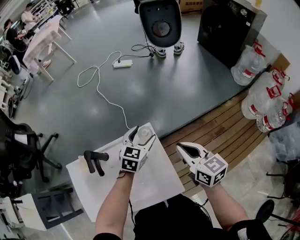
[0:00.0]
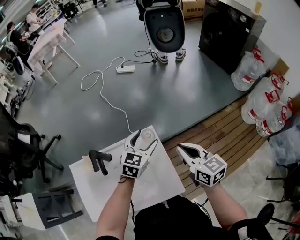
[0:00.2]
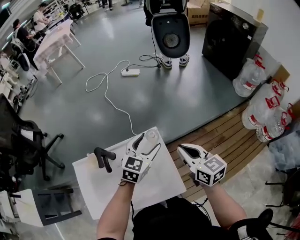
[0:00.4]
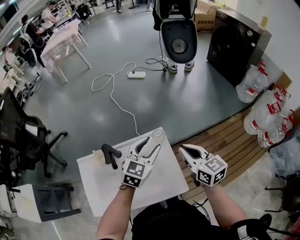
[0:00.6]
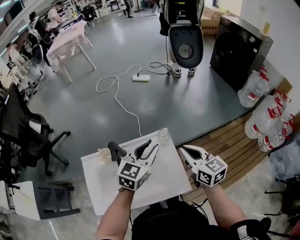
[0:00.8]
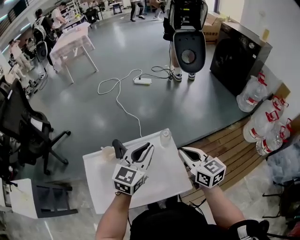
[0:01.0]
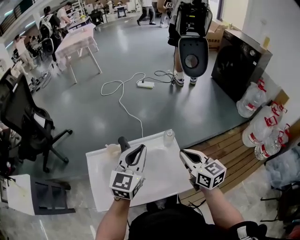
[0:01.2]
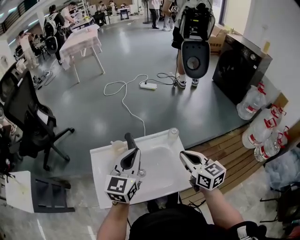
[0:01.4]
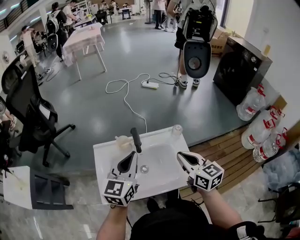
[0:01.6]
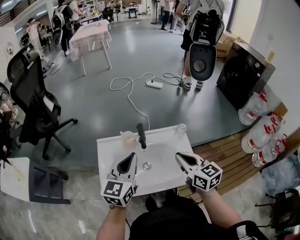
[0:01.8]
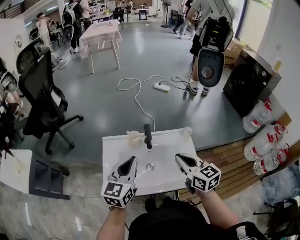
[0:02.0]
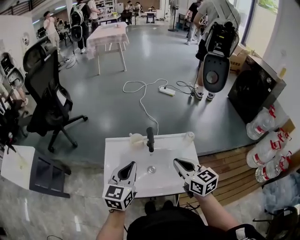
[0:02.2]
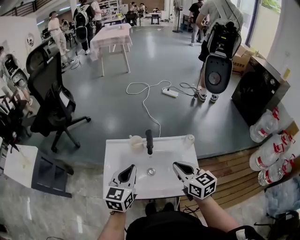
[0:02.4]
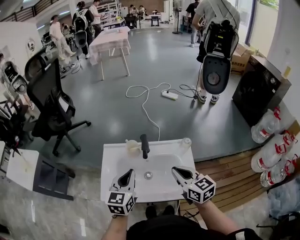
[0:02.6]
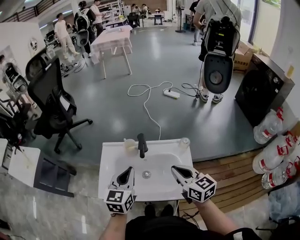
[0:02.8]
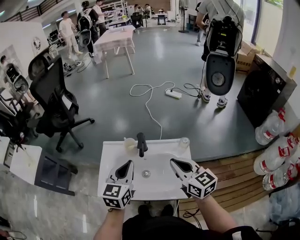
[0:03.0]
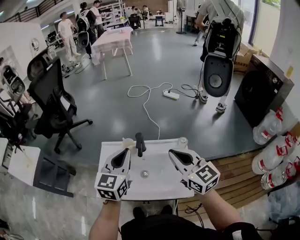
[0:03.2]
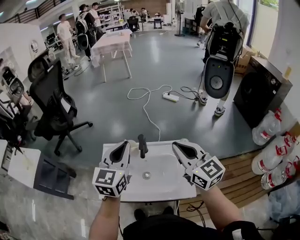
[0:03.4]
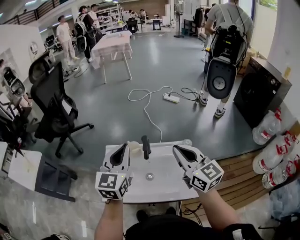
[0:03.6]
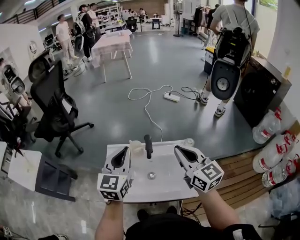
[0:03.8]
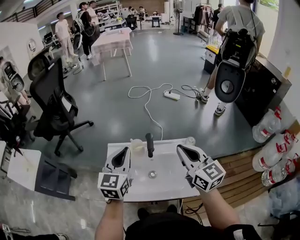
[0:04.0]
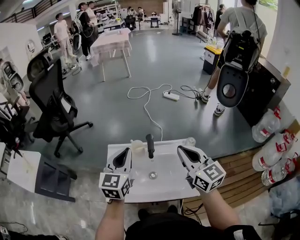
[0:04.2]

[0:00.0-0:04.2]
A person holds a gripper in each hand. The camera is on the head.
0:00.0 to 0:01.4: The left gripper travels upward, to the left and backward by about 35 cm, turns by about 30 degrees, and closes. Meanwhile the right gripper heads to the left, backward and upward, covering about 20 cm.
0:01.4 to 0:02.8: The right gripper moves to the left, roughly 5 cm. Meanwhile the left gripper is displaced to the left, backward and downward by about 10 cm, and swivels some 20 degrees.
0:02.8 to 0:04.2: The right gripper shifts some 10 cm upward, while the left gripper shifts some 10 cm upward, forward and to the left.

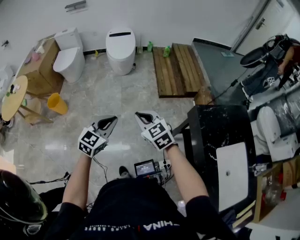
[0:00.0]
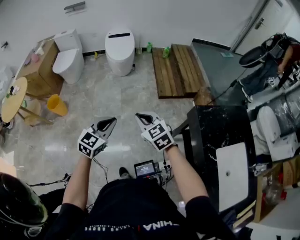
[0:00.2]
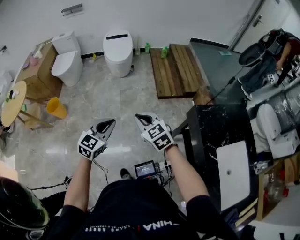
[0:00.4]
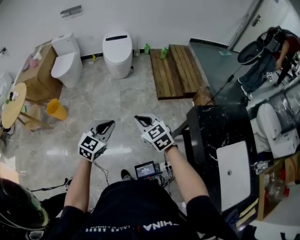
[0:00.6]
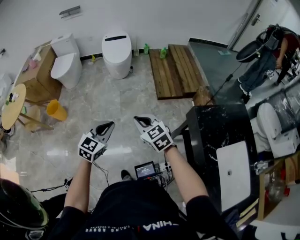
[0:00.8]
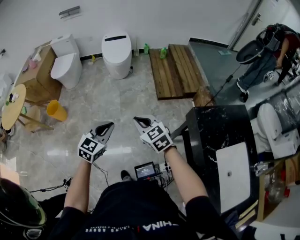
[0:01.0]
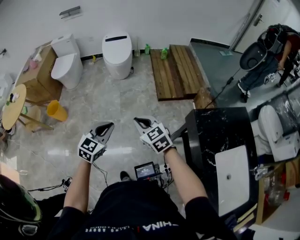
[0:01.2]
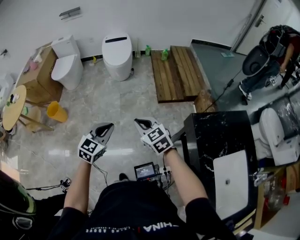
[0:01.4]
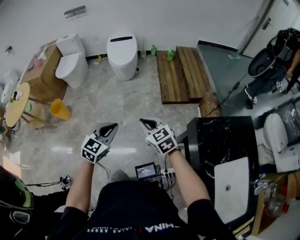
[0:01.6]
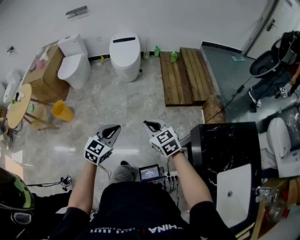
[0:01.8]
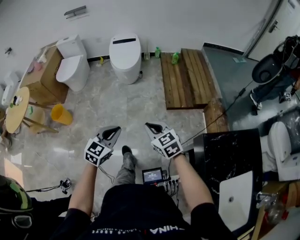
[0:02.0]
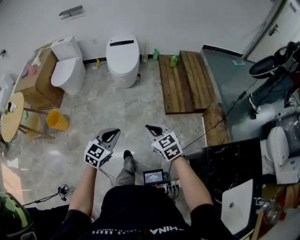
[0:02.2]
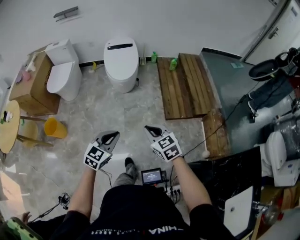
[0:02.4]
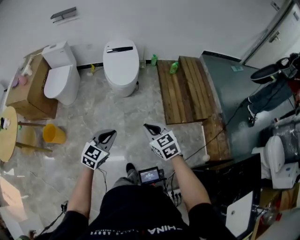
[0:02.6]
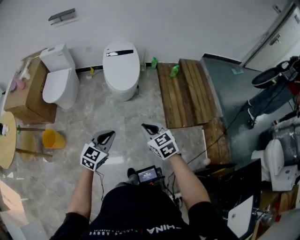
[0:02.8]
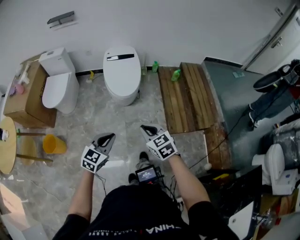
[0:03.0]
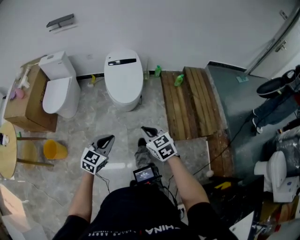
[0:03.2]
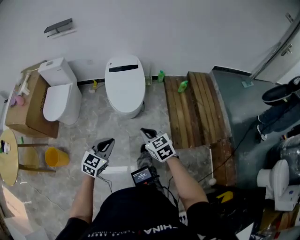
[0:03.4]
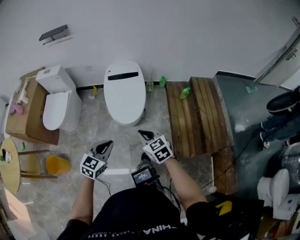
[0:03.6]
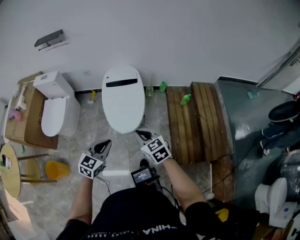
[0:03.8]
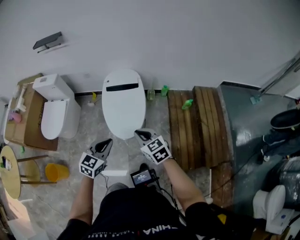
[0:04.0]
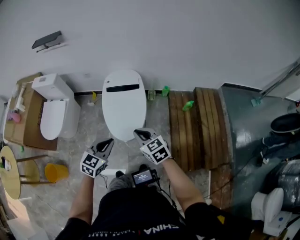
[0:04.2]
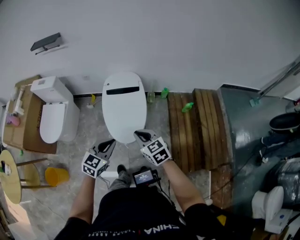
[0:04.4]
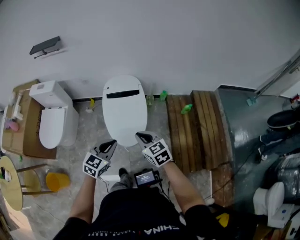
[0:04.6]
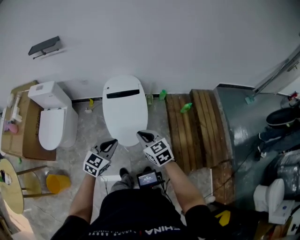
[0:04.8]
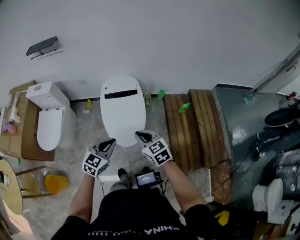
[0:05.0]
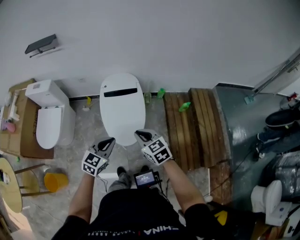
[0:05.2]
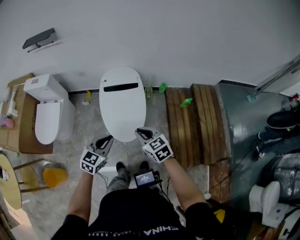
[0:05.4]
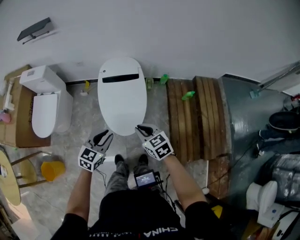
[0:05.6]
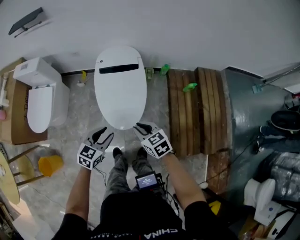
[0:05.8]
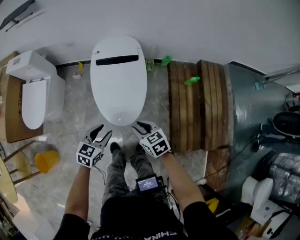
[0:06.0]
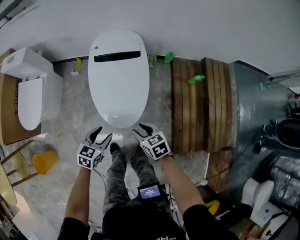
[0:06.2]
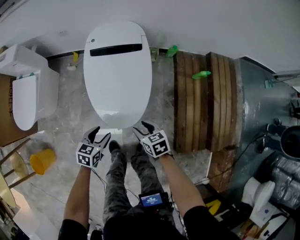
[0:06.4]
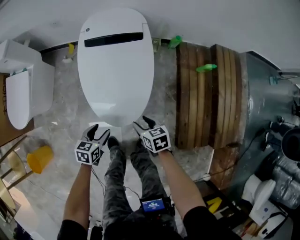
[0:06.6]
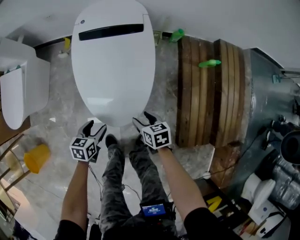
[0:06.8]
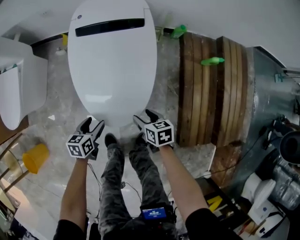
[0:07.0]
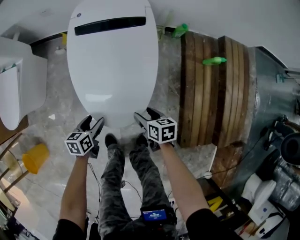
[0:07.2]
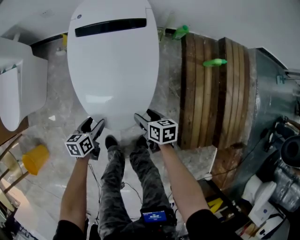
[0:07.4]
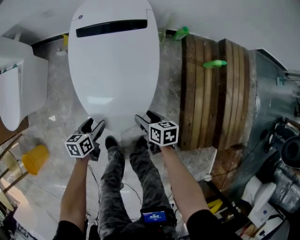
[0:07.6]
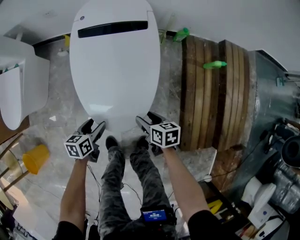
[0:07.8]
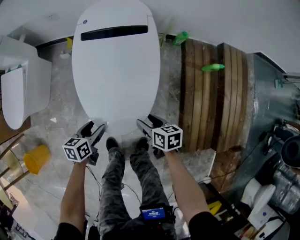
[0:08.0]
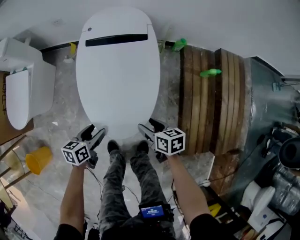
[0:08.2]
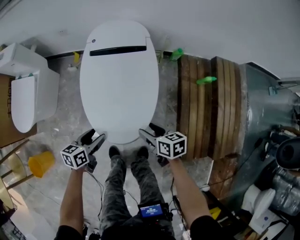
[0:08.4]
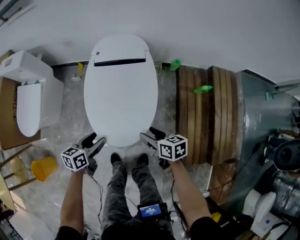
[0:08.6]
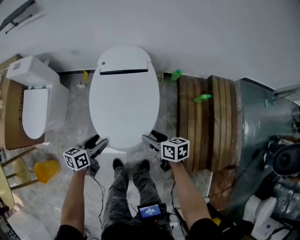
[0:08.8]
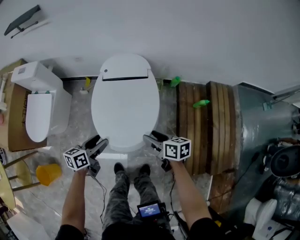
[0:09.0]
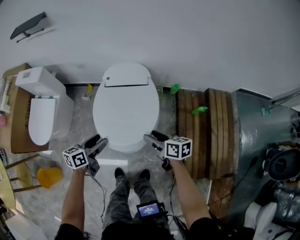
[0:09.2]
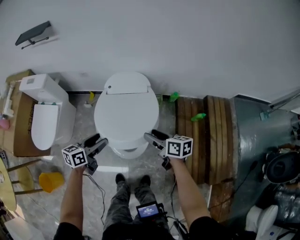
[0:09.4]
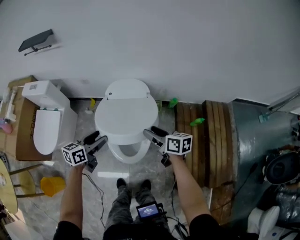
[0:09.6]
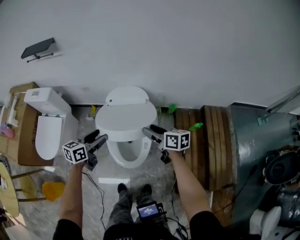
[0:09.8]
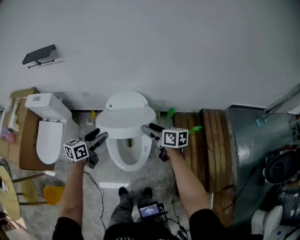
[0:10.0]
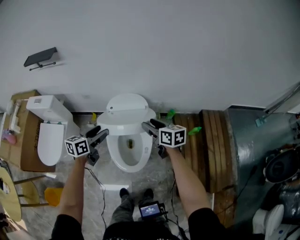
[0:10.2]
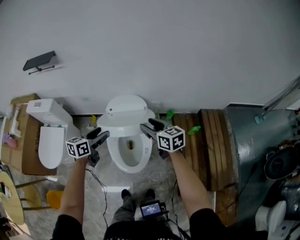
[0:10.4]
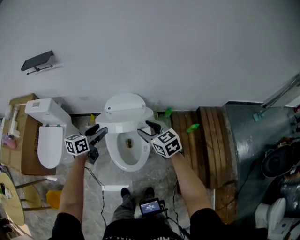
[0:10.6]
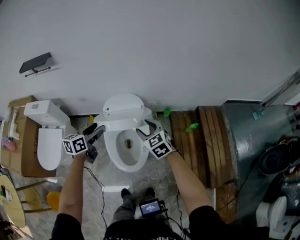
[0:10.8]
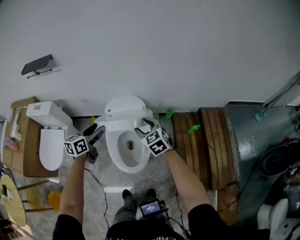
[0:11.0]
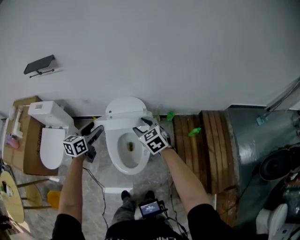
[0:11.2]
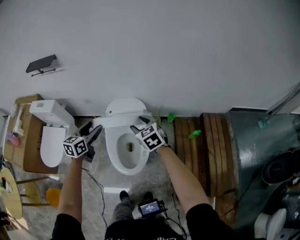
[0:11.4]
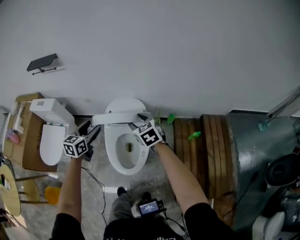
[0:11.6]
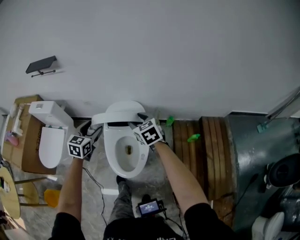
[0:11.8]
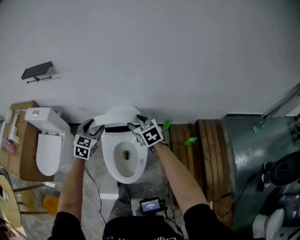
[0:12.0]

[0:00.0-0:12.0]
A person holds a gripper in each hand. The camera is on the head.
0:00.0 to 0:01.6: The right gripper is displaced to the right and forward by about 10 cm, while the left gripper goes approximately 5 cm forward.
0:01.6 to 0:03.0: The pair of grippers is taken forward, about 50 cm.
0:03.0 to 0:04.4: Both grippers are carried forward, some 40 cm.
0:04.4 to 0:06.0: Both grippers move downward, about 20 cm. The left gripper opens up.
0:06.0 to 0:07.6: Both grippers travel together downward, about 30 cm. The right gripper changes its angle by roughly 30 degrees, and opens its fingers; the left gripper swivels some 40 degrees, and opens up.
0:07.6 to 0:09.0: The two grippers go approximately 30 cm upward.
0:09.0 to 0:10.4: The two grippers go about 25 cm upward and forward. The right gripper changes its angle by roughly 30 degrees.
0:10.4 to 0:12.0: The two grippers go about 10 cm forward. The left gripper turns by roughly 50 degrees, while the right gripper swivels some 20 degrees.

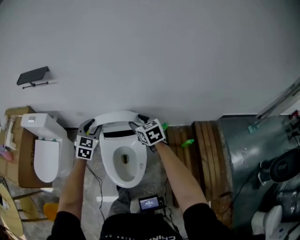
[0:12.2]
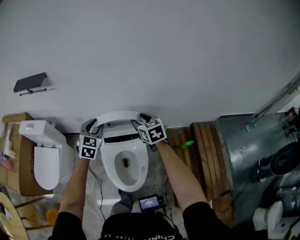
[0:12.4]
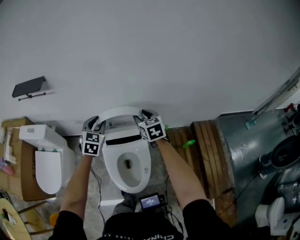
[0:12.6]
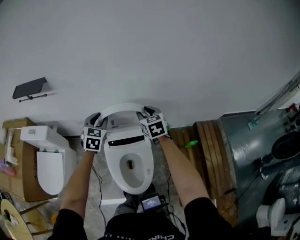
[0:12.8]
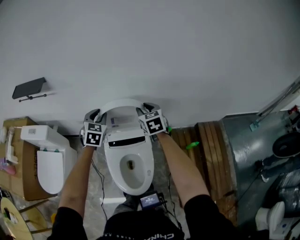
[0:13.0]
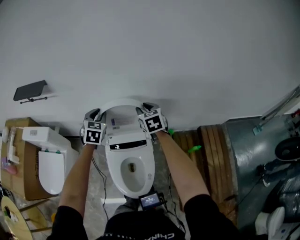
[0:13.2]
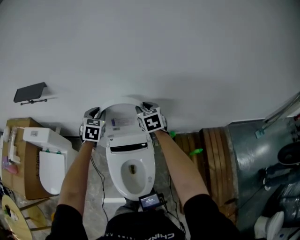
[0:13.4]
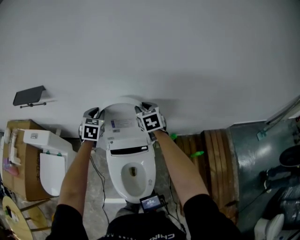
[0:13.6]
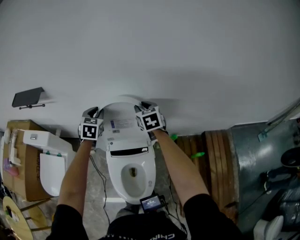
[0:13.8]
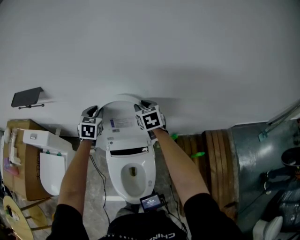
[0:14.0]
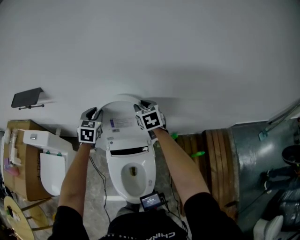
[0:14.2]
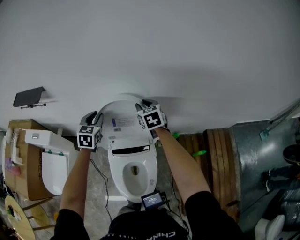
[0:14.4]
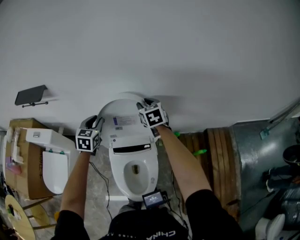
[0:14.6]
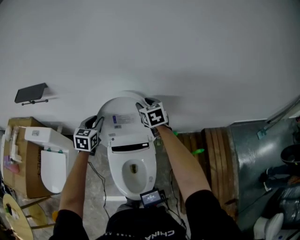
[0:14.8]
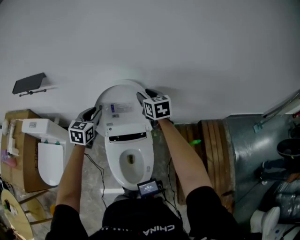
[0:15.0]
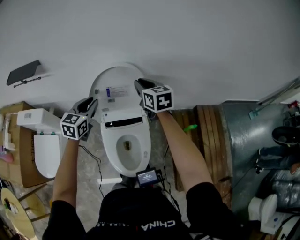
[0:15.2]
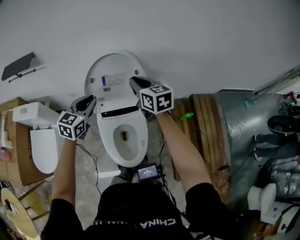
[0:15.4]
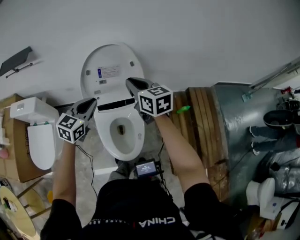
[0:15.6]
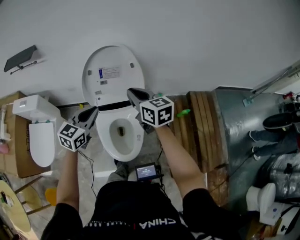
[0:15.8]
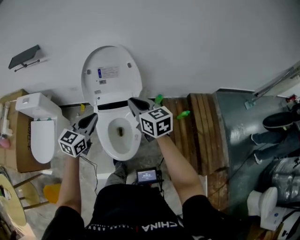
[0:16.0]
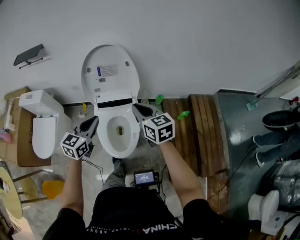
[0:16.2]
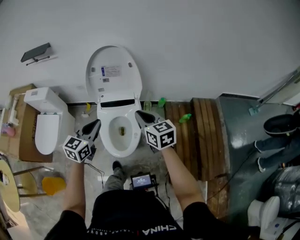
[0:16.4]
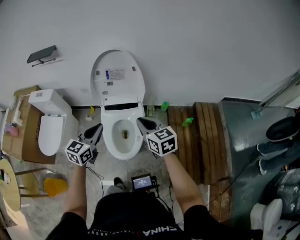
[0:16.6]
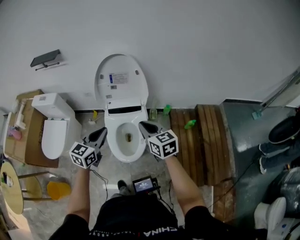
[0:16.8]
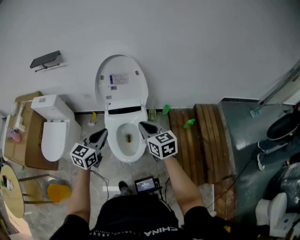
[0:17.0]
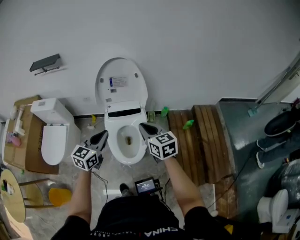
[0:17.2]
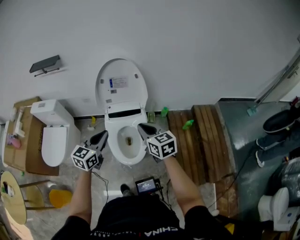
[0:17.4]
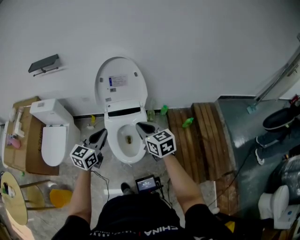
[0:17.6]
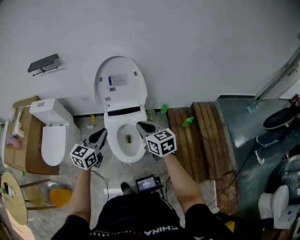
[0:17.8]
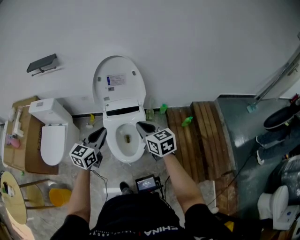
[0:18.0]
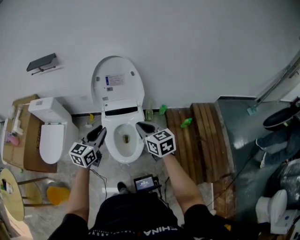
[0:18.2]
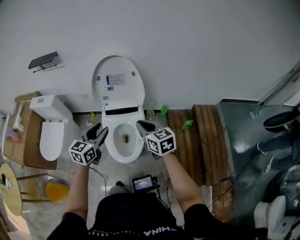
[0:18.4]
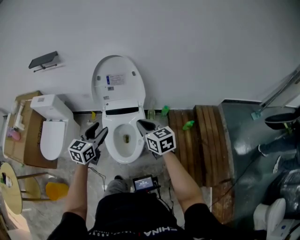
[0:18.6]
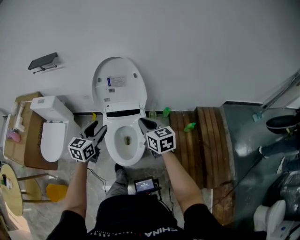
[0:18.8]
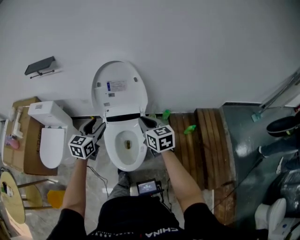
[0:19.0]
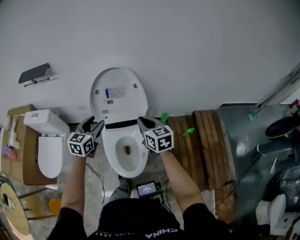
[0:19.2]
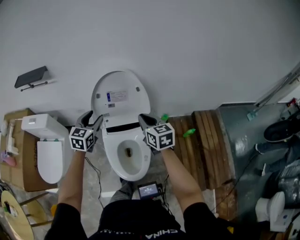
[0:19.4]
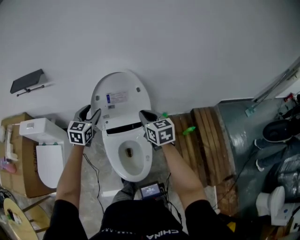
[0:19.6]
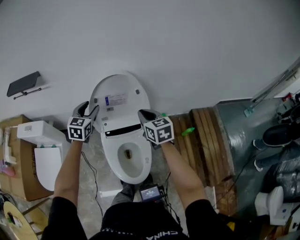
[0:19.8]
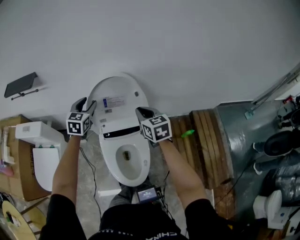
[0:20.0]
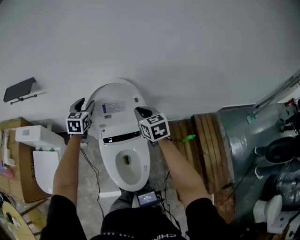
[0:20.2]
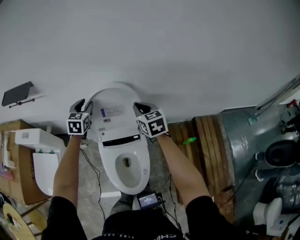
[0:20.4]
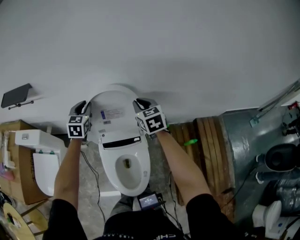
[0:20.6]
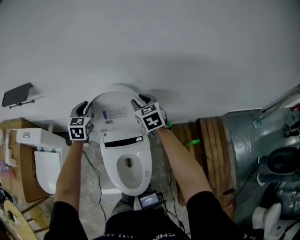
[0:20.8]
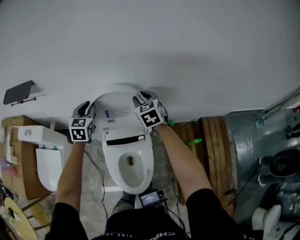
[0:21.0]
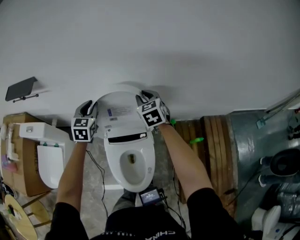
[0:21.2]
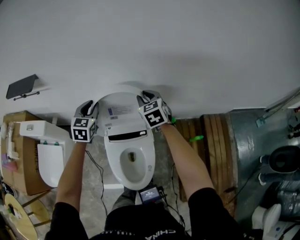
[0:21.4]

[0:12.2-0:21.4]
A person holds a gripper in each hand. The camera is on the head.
0:12.2 to 0:13.8: The two grippers go roughly 25 cm forward. The right gripper closes.
0:13.8 to 0:15.2: The right gripper travels backward and upward by approximately 10 cm; the left gripper moves backward, some 15 cm, and swivels roughly 20 degrees.
0:15.2 to 0:16.8: The two grippers go about 35 cm backward.
0:16.8 to 0:18.4: The left gripper opens.
0:18.4 to 0:19.8: Both grippers move forward, approximately 30 cm.
0:19.8 to 0:21.4: The left gripper shifts approximately 5 cm forward, and closes its fingers. The right gripper goes some 15 cm forward.
